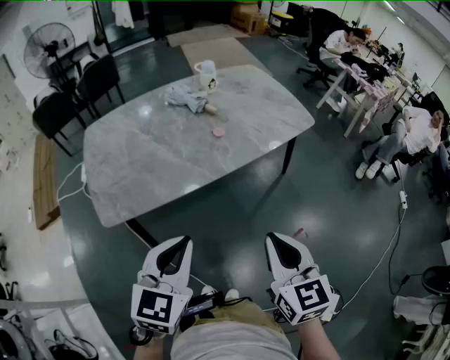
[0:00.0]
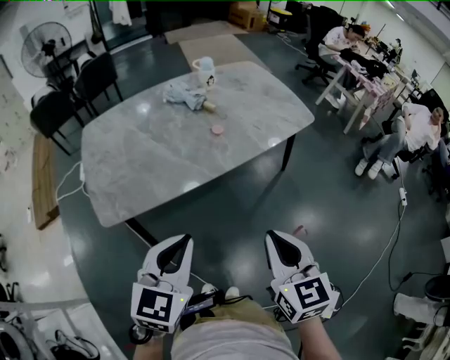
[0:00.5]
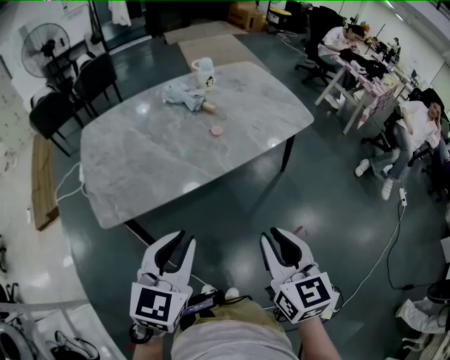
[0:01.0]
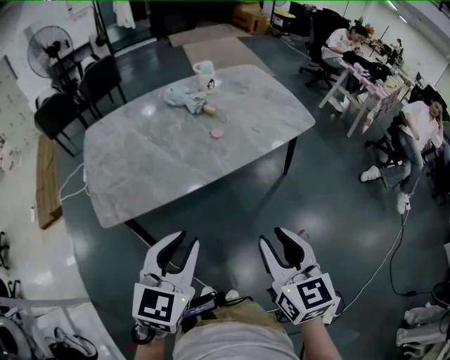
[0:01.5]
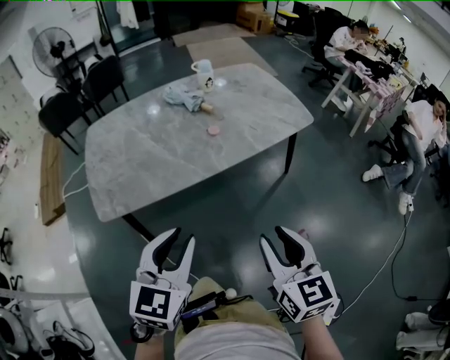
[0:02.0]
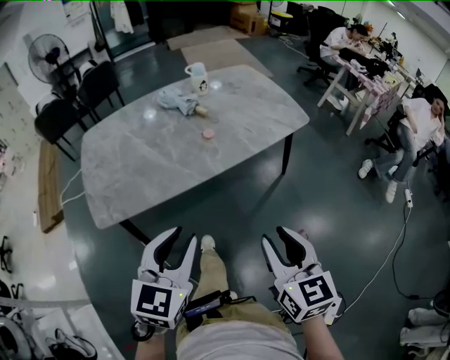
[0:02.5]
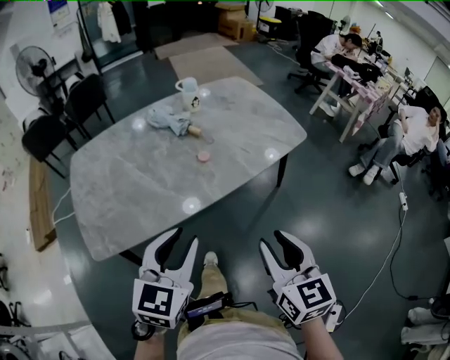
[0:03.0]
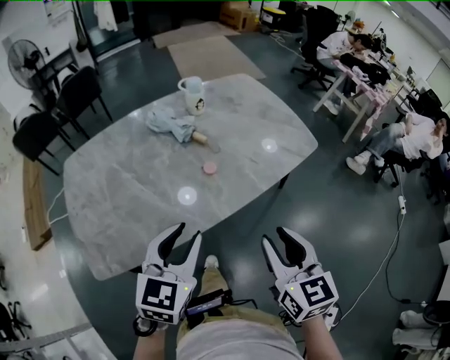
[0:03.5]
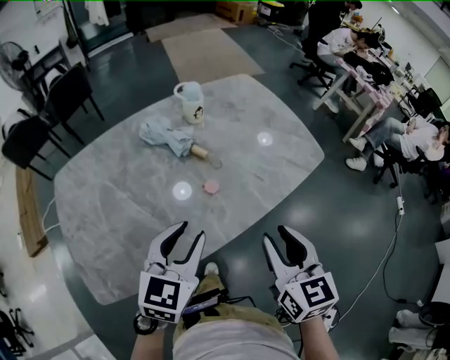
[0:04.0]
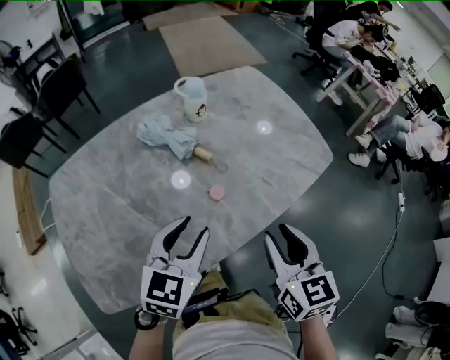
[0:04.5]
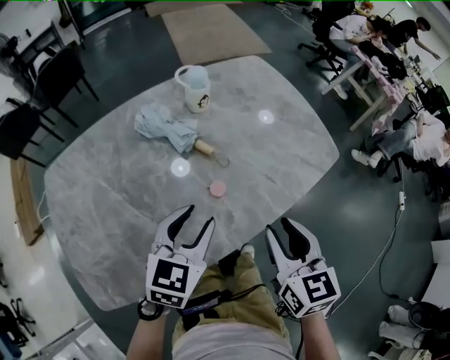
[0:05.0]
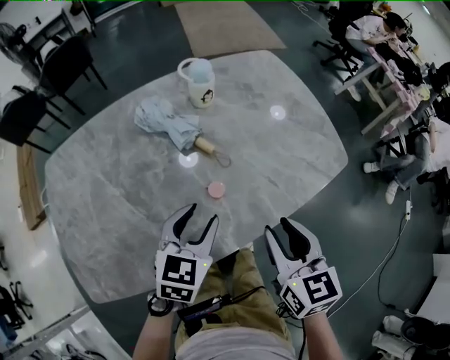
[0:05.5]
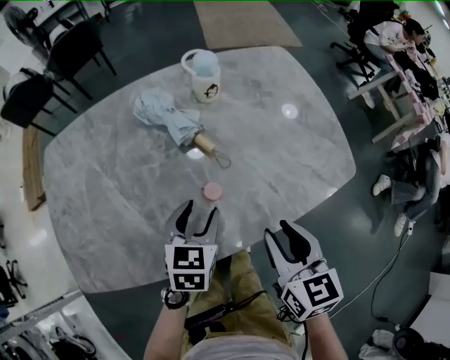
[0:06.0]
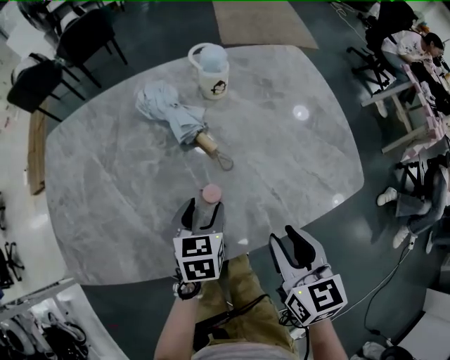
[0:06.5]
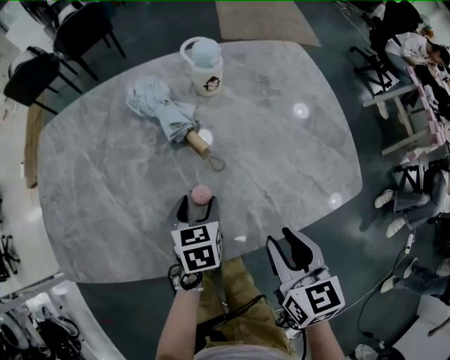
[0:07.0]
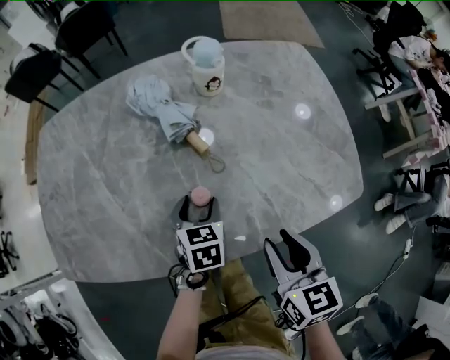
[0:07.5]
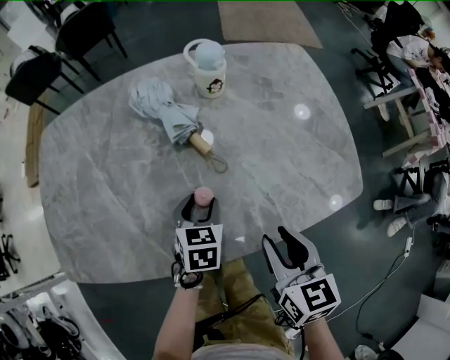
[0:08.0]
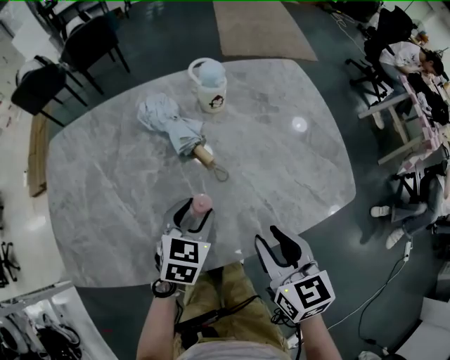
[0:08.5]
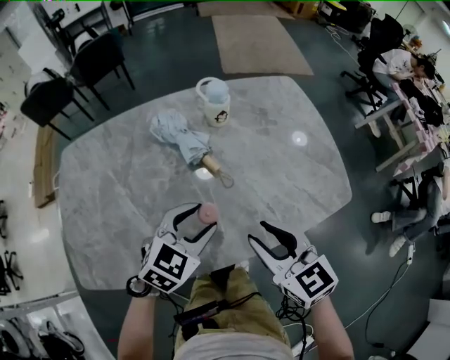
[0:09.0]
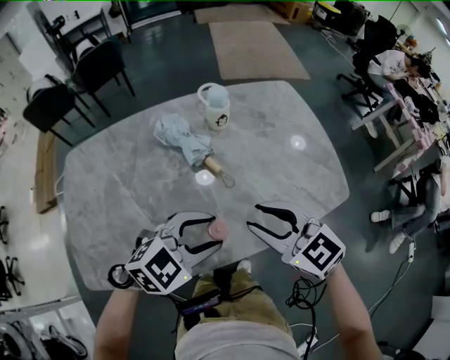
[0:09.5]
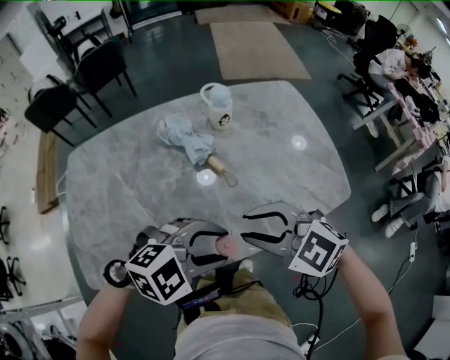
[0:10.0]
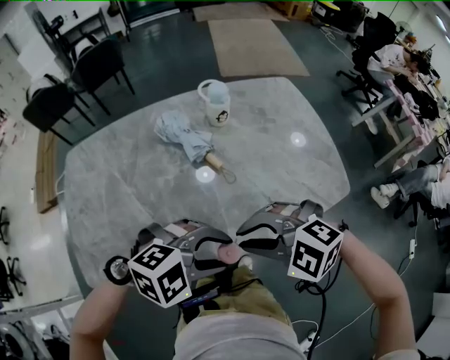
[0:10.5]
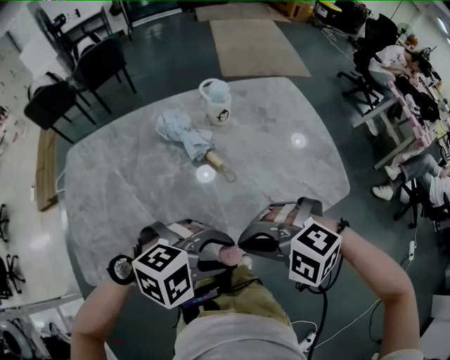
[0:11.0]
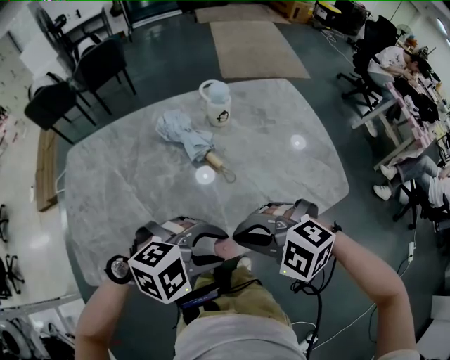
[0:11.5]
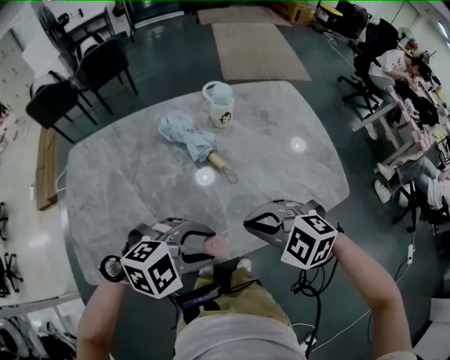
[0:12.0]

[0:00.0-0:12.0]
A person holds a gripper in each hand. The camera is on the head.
0:00.0 to 0:02.0: The right gripper opens up.
0:02.0 to 0:04.0: Both grippers travel together forward, approximately 30 cm.
0:04.0 to 0:06.0: Both grippers travel together forward and downward, some 15 cm. The left gripper changes its angle by approximately 30 degrees.
0:06.0 to 0:08.0: The left gripper is displaced downward by some 10 cm, while the right gripper ends up about 5 cm from where it was.
0:08.0 to 0:10.0: The right gripper changes place by approximately 15 cm, and turns by about 60 degrees, while the left gripper is displaced upward by roughly 20 cm, and swivels roughly 80 degrees.
0:10.0 to 0:12.0: The right gripper heads downward, covering roughly 5 cm, and closes its fingers.

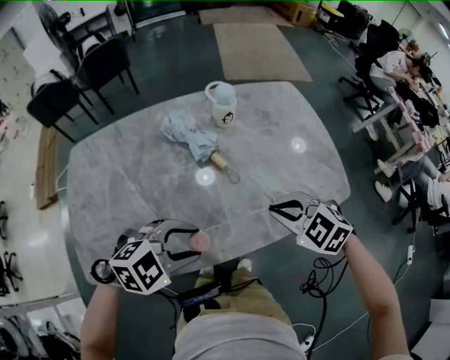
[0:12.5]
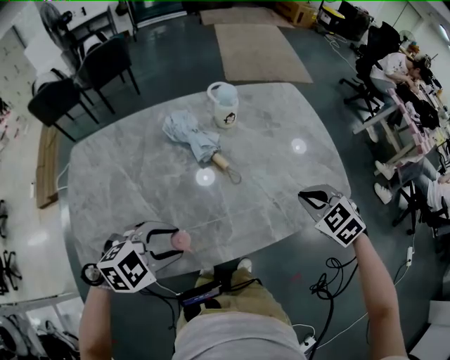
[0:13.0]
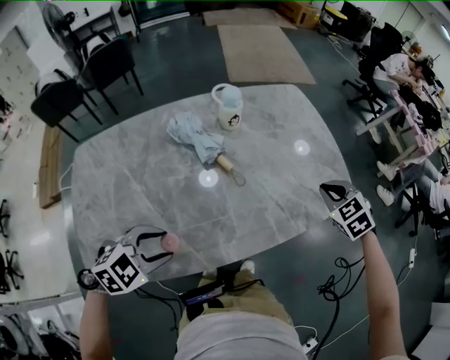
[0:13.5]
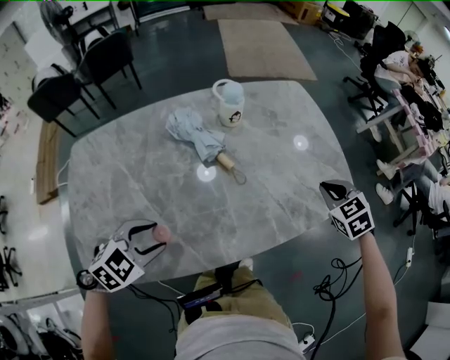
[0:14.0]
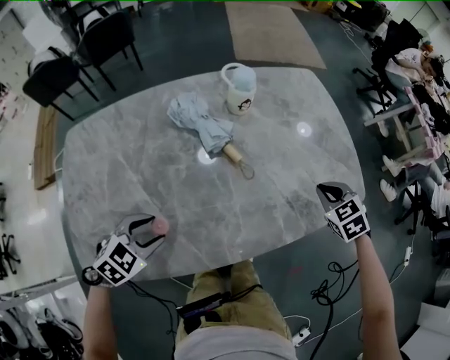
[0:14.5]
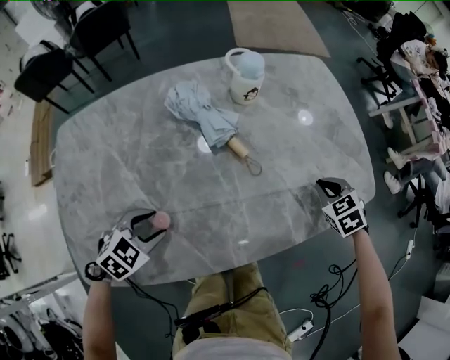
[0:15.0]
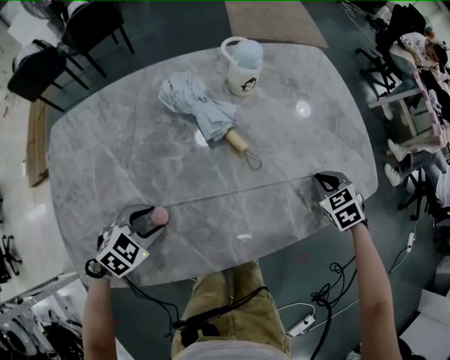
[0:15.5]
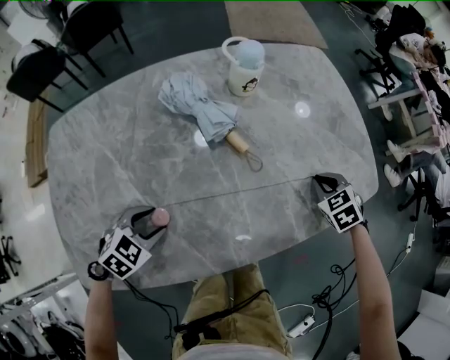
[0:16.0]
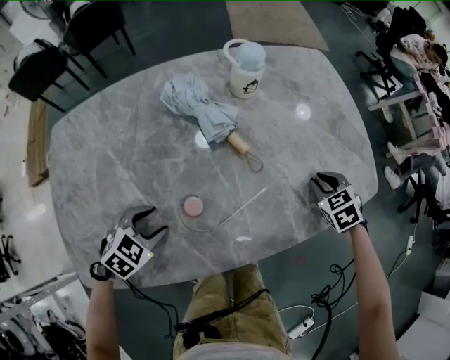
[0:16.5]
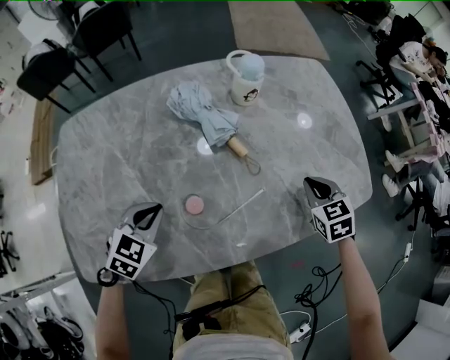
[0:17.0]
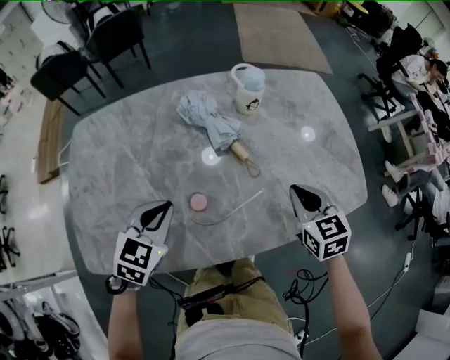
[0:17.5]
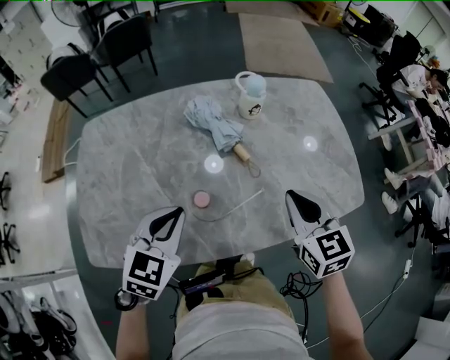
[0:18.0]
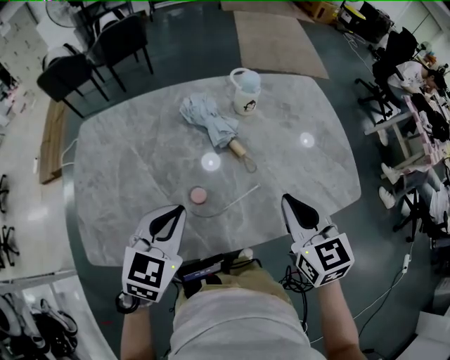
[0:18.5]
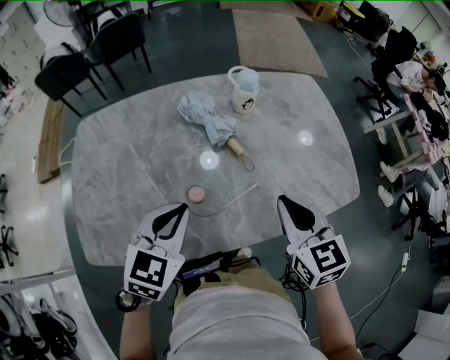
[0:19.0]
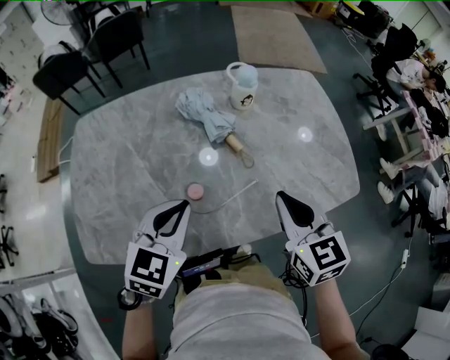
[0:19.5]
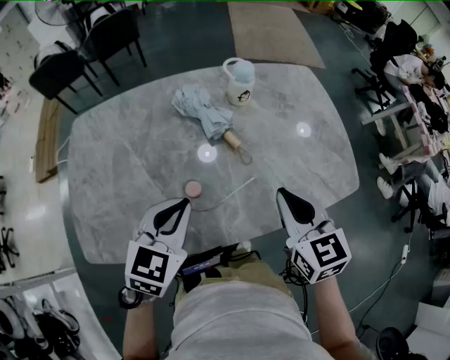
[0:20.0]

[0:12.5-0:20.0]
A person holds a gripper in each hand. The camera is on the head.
0:12.5 to 0:14.5: The right gripper changes place by some 20 cm, and swivels roughly 30 degrees. Meanwhile the left gripper changes place by approximately 15 cm, and turns by roughly 30 degrees.
0:14.5 to 0:16.5: The grippers both shift downward by about 10 cm.
0:16.5 to 0:18.0: The right gripper shifts roughly 25 cm upward, to the left and backward, and tips its fingers upward by approximately 30 degrees; the left gripper goes about 20 cm upward, rotates about 30 degrees, and closes.
0:18.0 to 0:20.0: The grippers make only small movements.

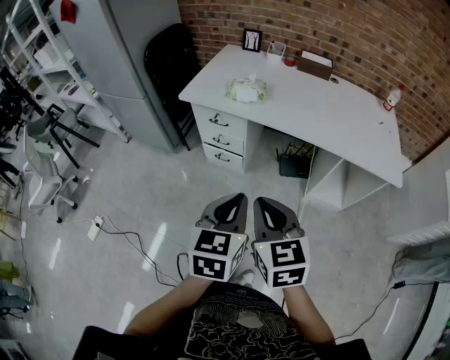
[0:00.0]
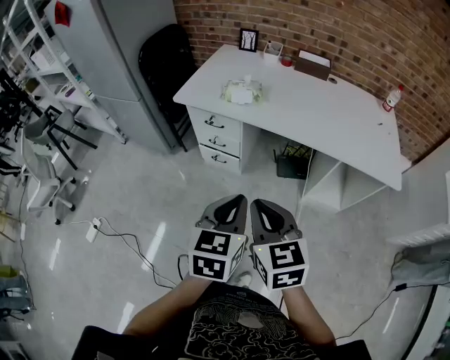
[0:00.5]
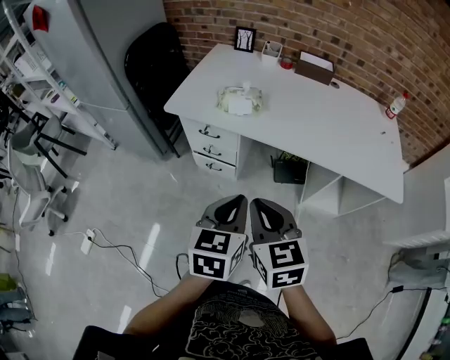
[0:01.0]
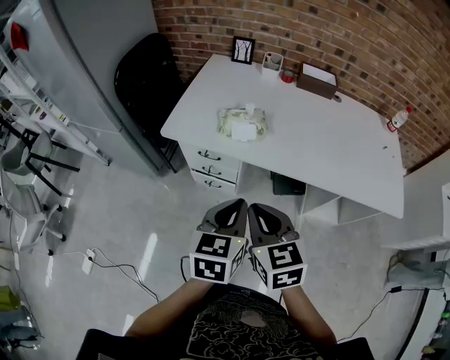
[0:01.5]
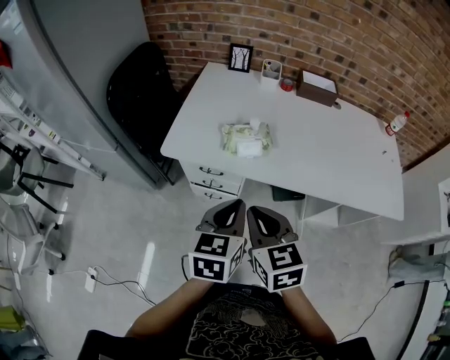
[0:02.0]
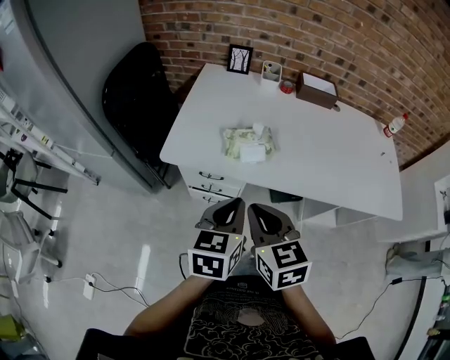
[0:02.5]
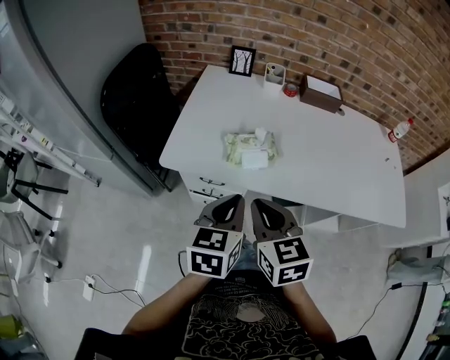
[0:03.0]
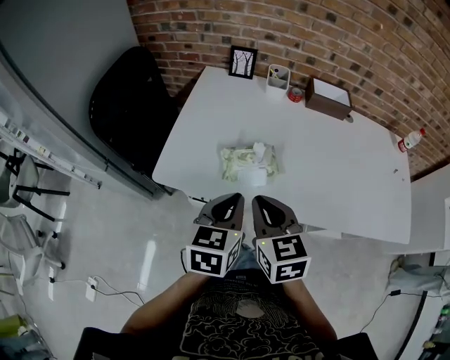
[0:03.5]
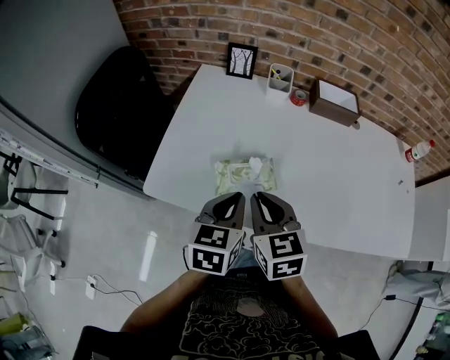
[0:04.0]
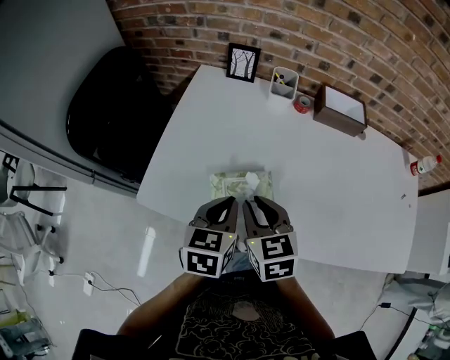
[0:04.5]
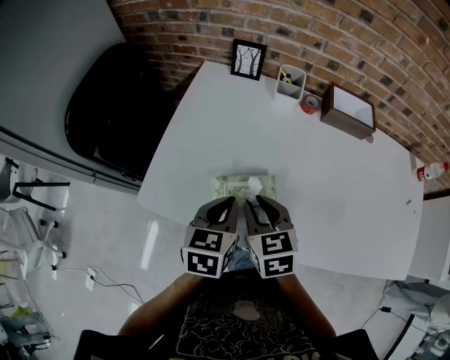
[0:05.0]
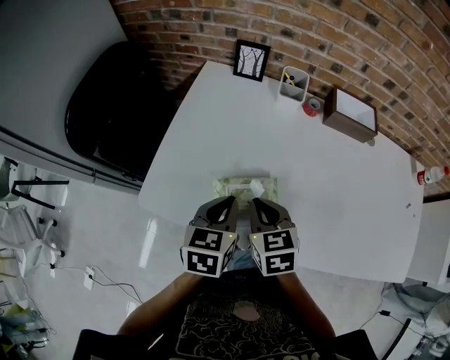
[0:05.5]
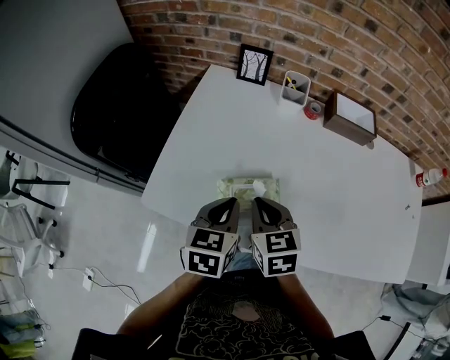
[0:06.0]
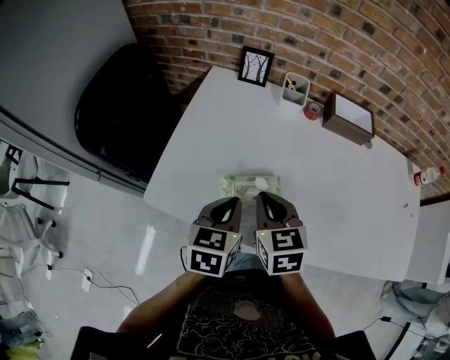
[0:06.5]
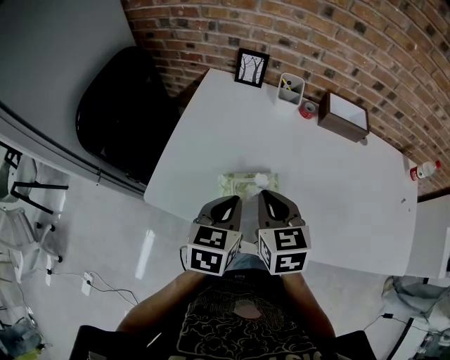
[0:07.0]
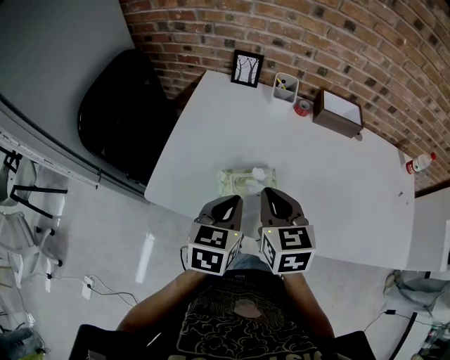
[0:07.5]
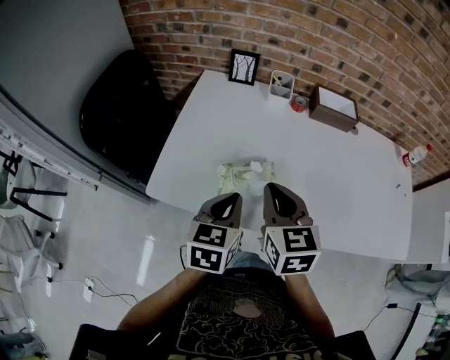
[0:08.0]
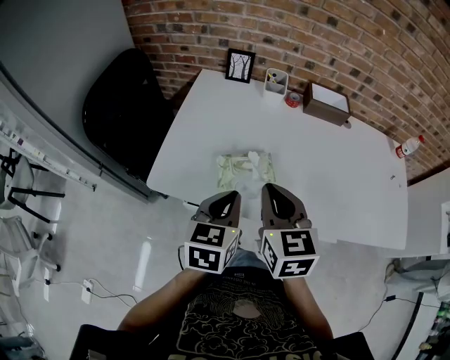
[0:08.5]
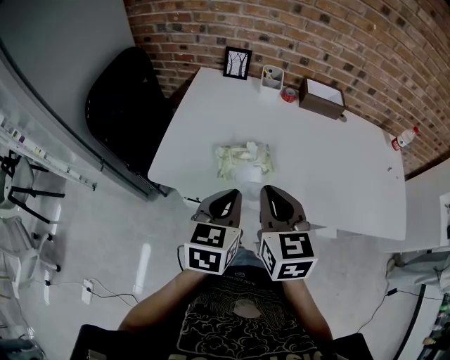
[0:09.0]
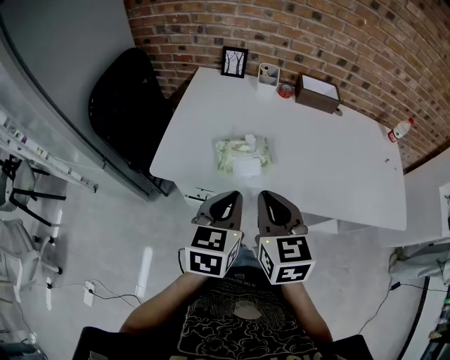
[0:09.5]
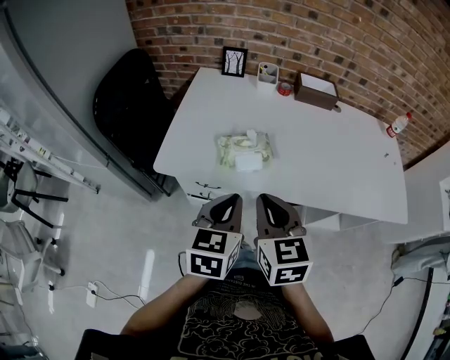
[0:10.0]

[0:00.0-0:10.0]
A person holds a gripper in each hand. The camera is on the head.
0:00.0 to 0:02.0: The grippers both shift forward by roughly 30 cm.
0:02.0 to 0:04.0: Both grippers move forward, about 20 cm.
0:04.0 to 0:06.0: The right gripper is displaced forward and downward by roughly 10 cm, while the left gripper heads forward, covering roughly 5 cm.
0:06.0 to 0:08.0: The left gripper shifts about 5 cm backward, while the right gripper moves upward, approximately 10 cm.
0:08.0 to 0:10.0: The two grippers go some 15 cm backward.
